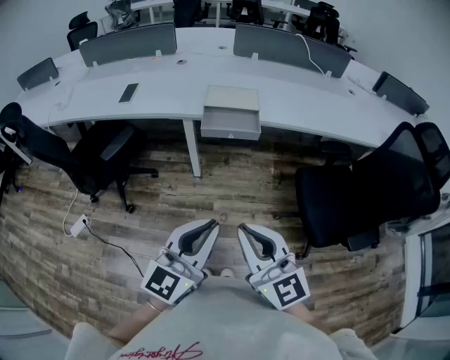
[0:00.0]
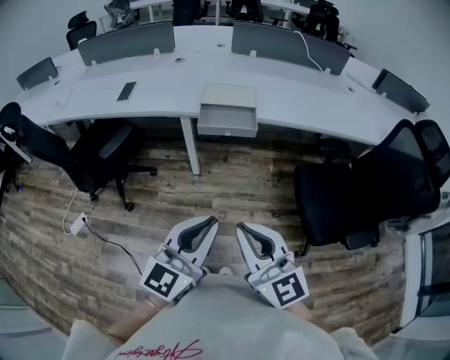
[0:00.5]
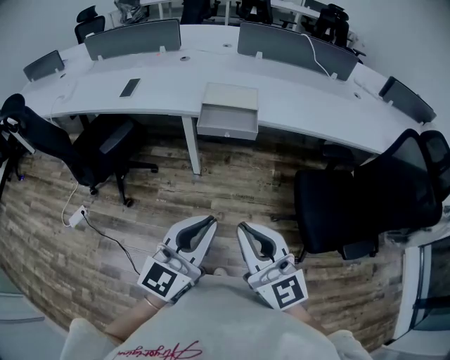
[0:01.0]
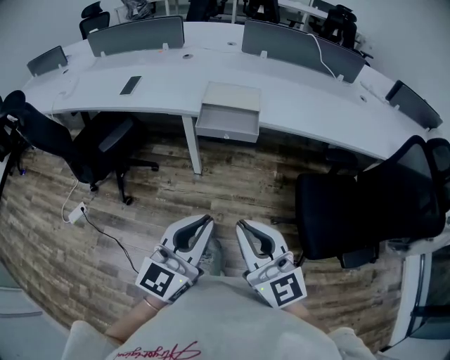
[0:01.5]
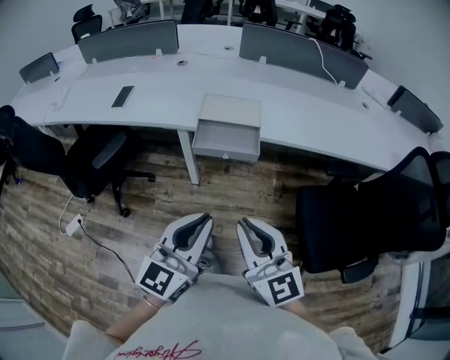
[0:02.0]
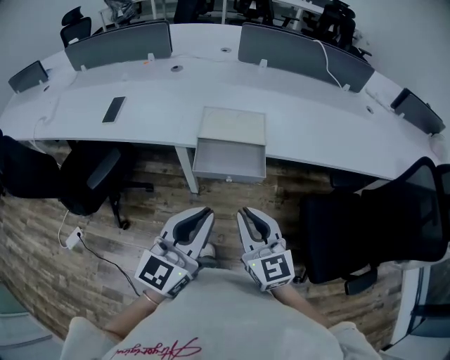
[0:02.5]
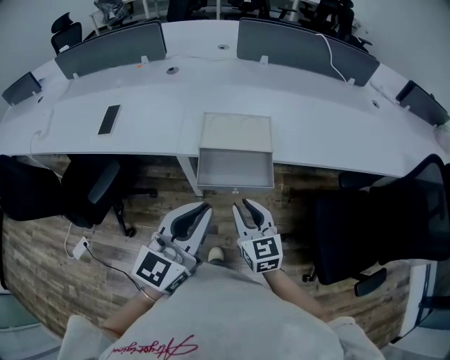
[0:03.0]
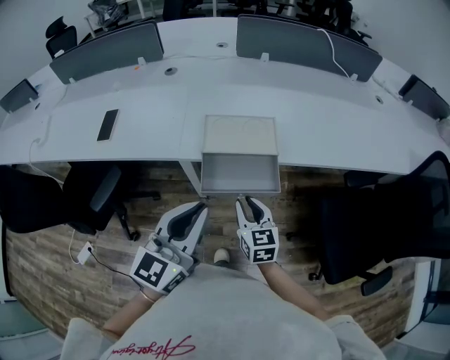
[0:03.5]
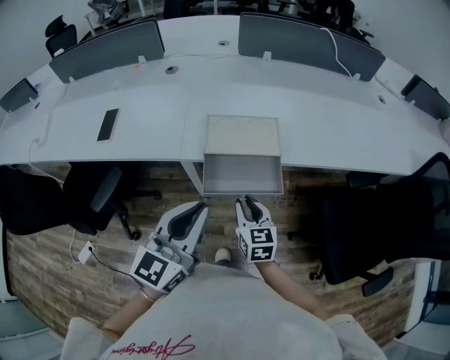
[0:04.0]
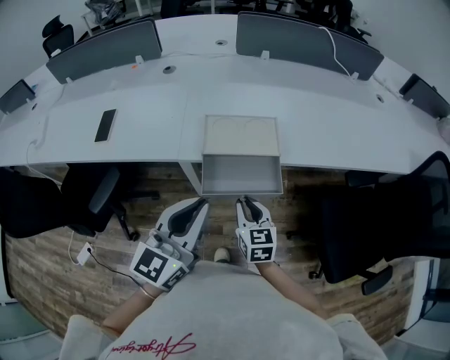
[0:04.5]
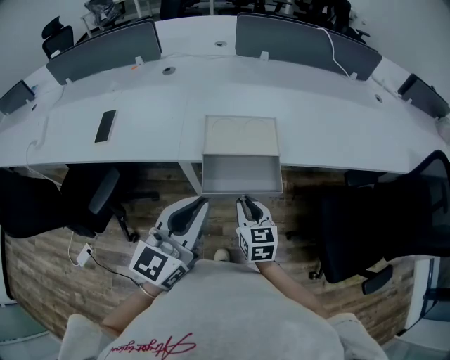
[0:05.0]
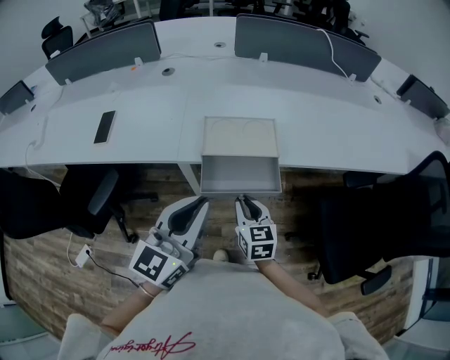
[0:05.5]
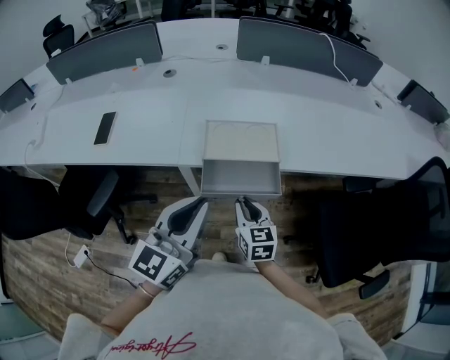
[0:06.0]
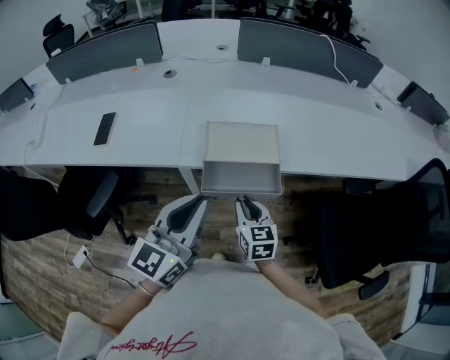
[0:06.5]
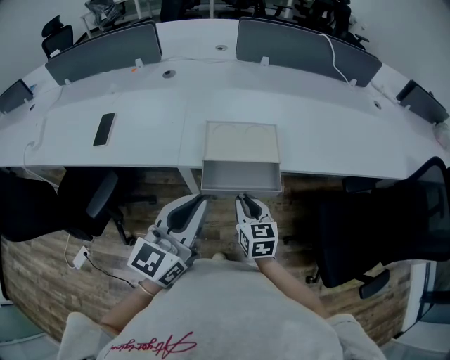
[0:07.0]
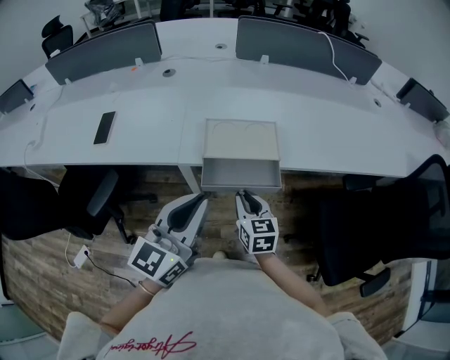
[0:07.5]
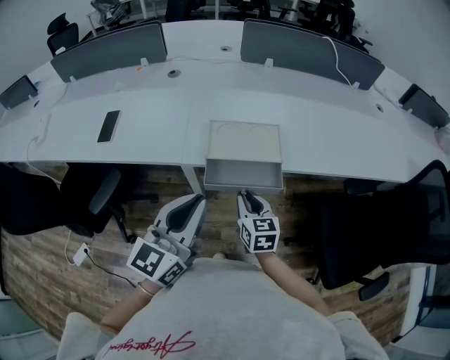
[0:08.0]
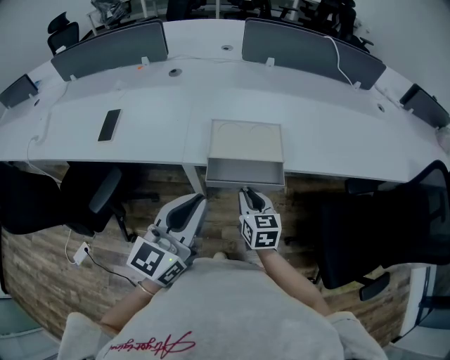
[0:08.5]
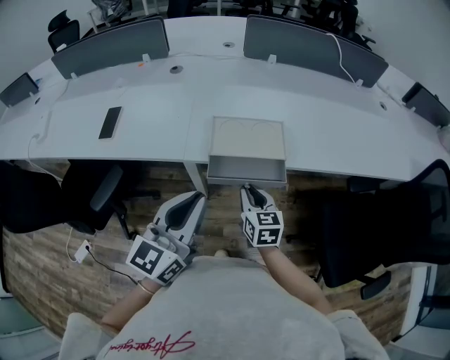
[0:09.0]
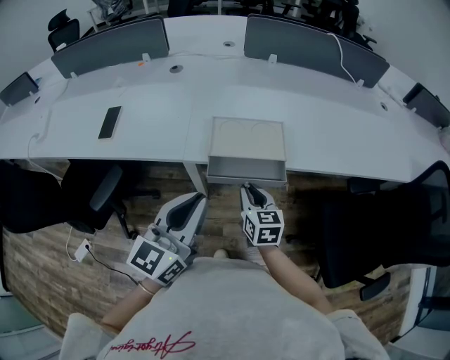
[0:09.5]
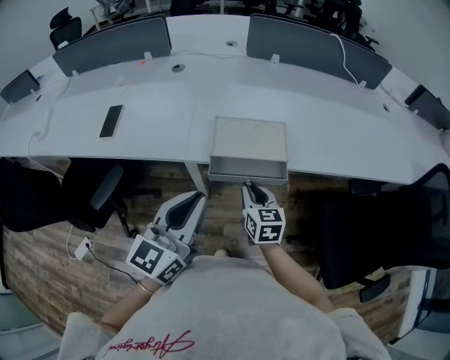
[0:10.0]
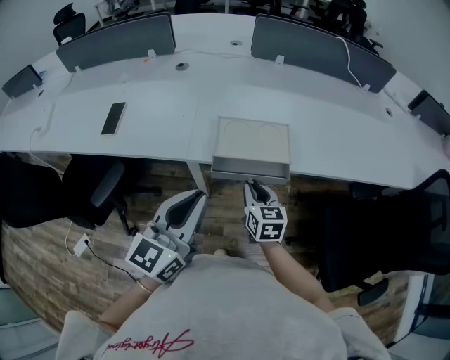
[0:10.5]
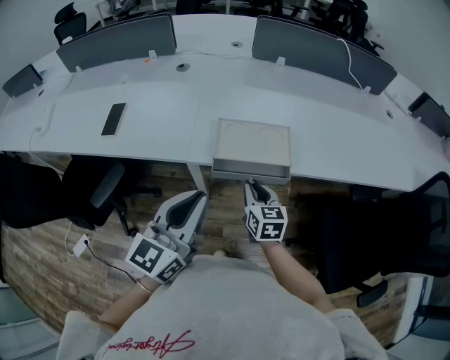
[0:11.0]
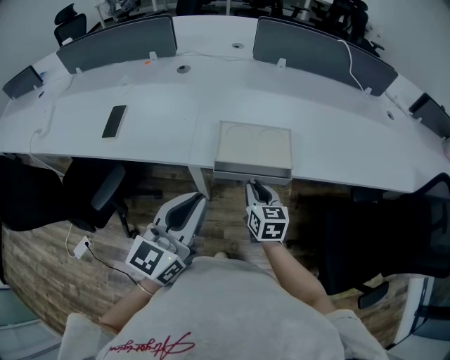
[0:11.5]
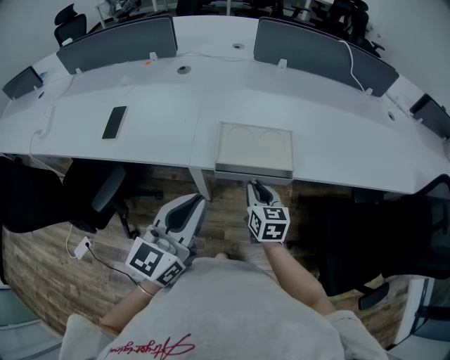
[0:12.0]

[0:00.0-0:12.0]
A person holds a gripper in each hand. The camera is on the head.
0:00.0 to 0:02.0: The two grippers go approximately 10 cm forward.
0:02.0 to 0:04.0: The right gripper shifts some 30 cm forward and downward, and rotates about 40 degrees, while the left gripper goes some 20 cm forward and to the left.
0:04.0 to 0:10.0: The grippers make only small movements.
0:10.0 to 0:12.0: The grippers move only a little.

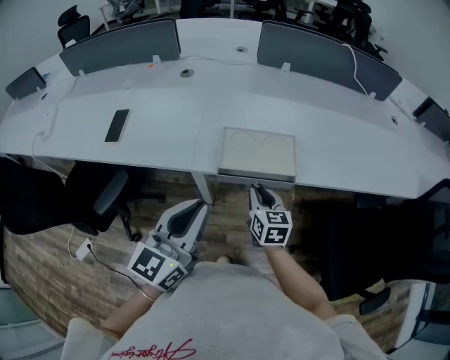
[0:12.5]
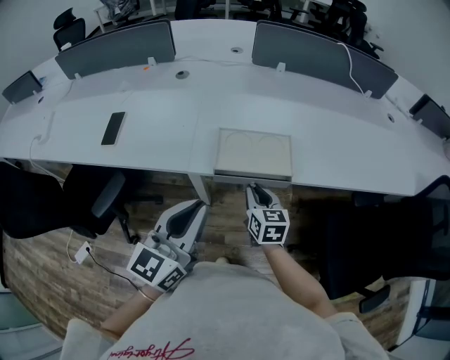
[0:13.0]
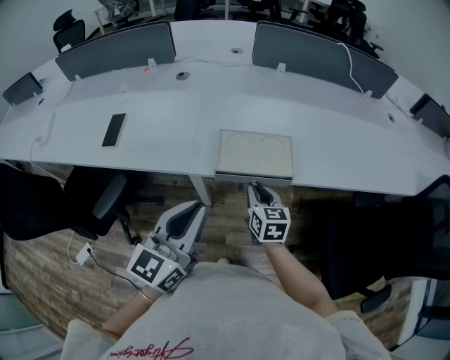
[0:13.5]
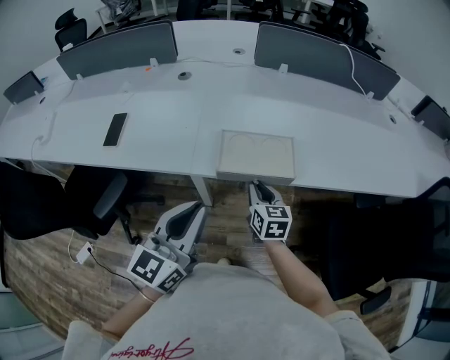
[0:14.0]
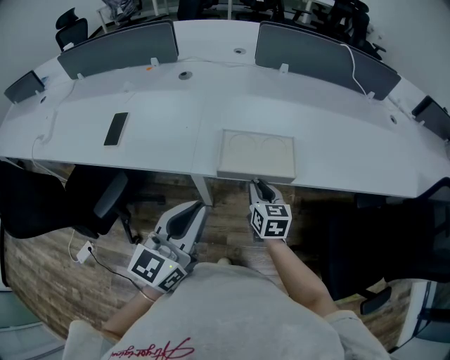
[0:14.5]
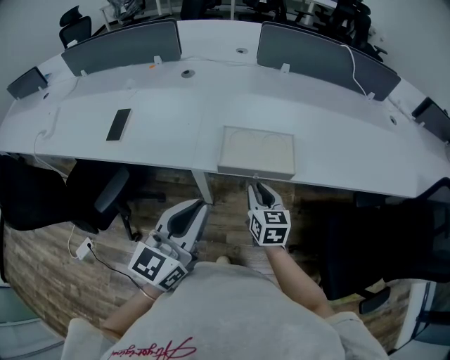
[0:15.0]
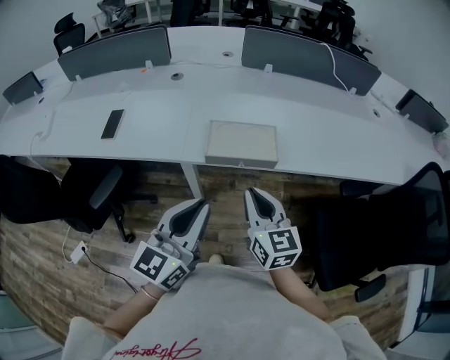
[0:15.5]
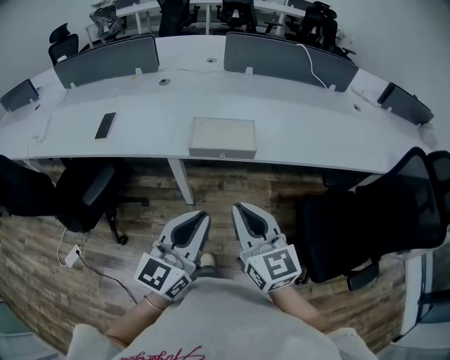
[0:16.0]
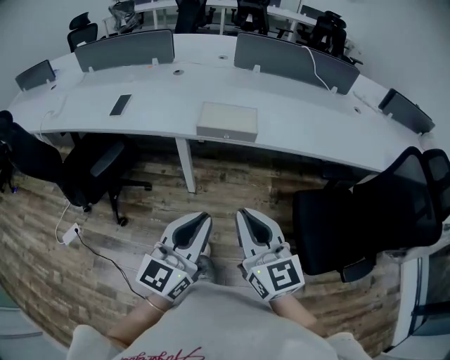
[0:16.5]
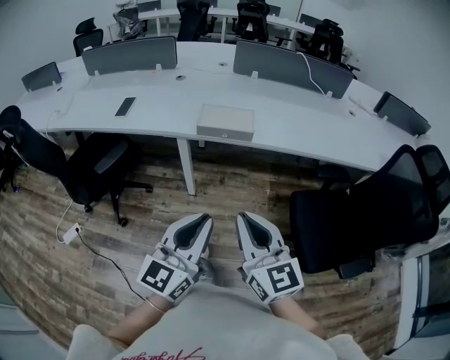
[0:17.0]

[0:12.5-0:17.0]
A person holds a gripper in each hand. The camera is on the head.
0:12.5 to 0:14.5: The grippers move only a little.
0:14.5 to 0:17.0: The right gripper travels backward and upward by about 40 cm, and swivels some 30 degrees. The left gripper goes roughly 30 cm backward and to the right.

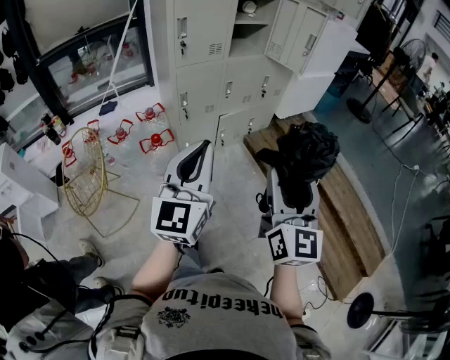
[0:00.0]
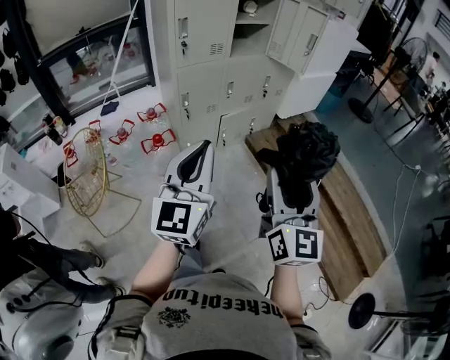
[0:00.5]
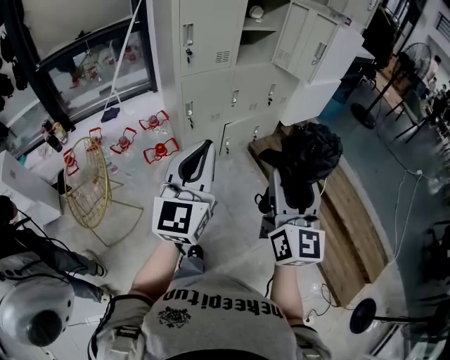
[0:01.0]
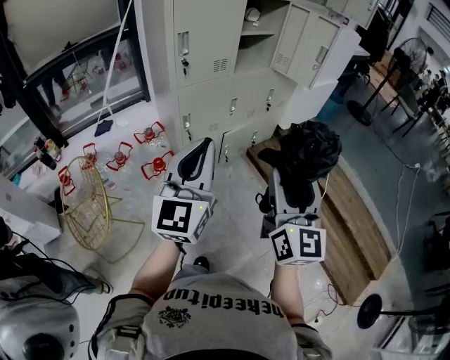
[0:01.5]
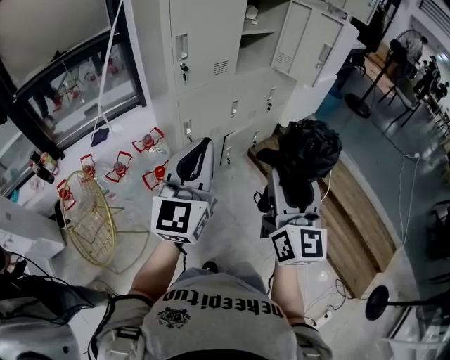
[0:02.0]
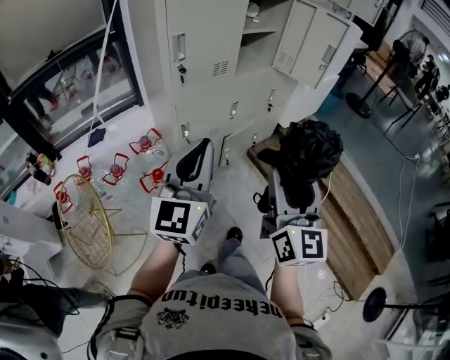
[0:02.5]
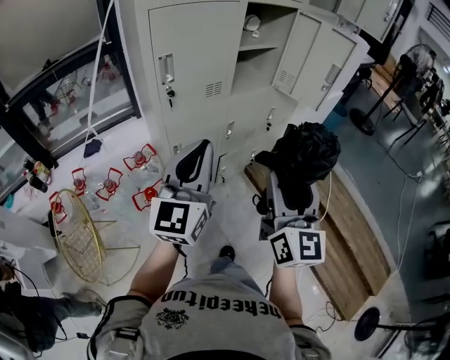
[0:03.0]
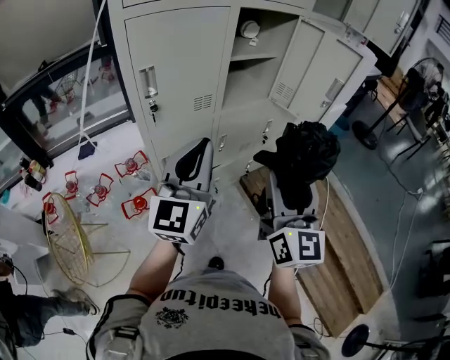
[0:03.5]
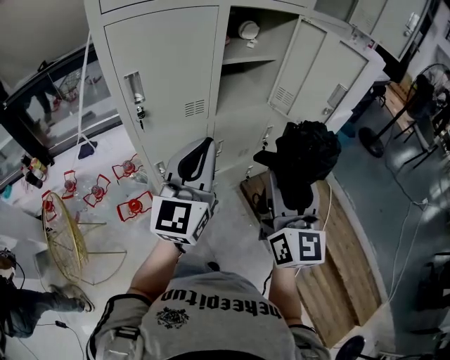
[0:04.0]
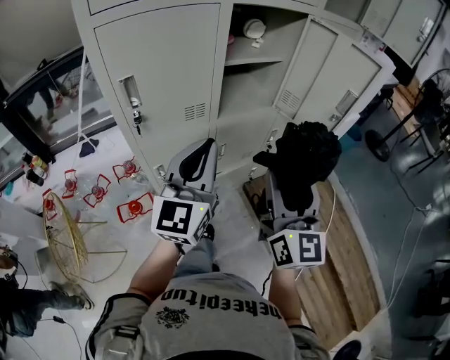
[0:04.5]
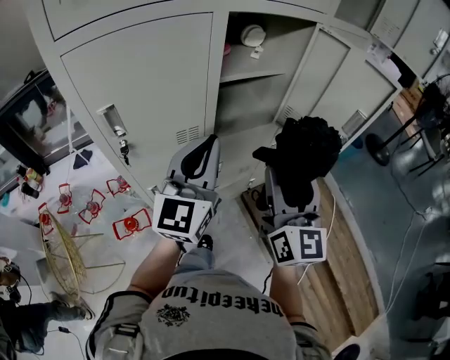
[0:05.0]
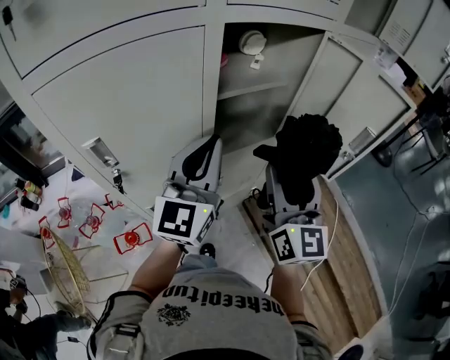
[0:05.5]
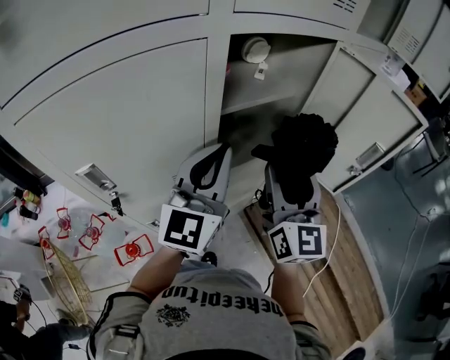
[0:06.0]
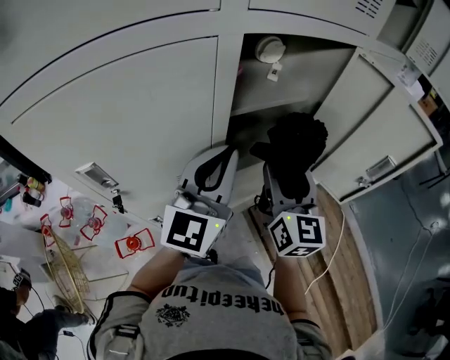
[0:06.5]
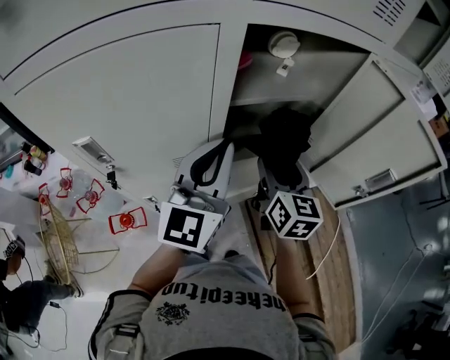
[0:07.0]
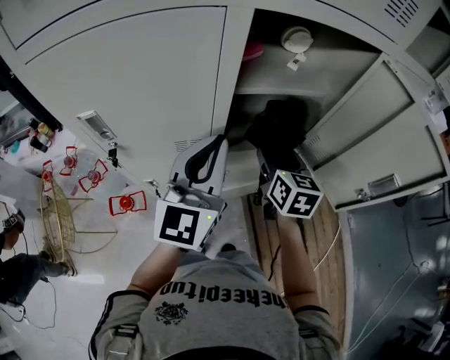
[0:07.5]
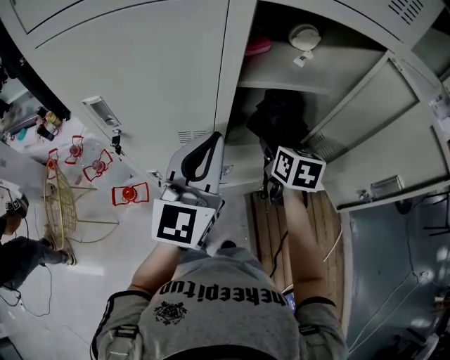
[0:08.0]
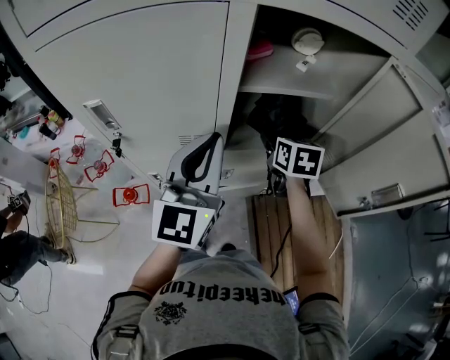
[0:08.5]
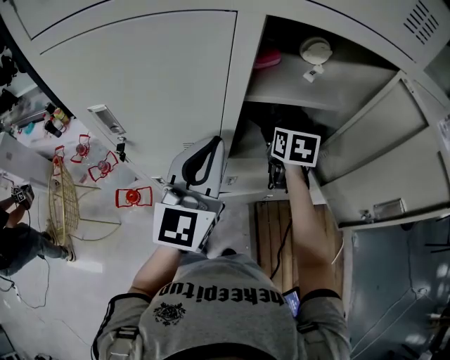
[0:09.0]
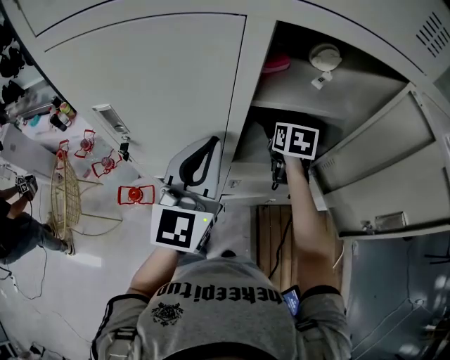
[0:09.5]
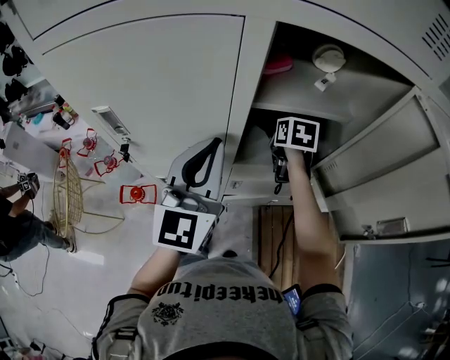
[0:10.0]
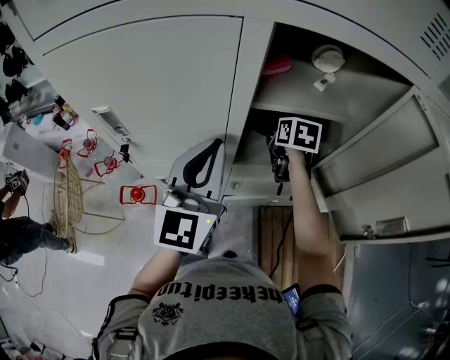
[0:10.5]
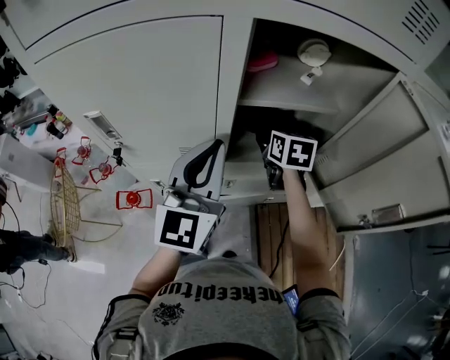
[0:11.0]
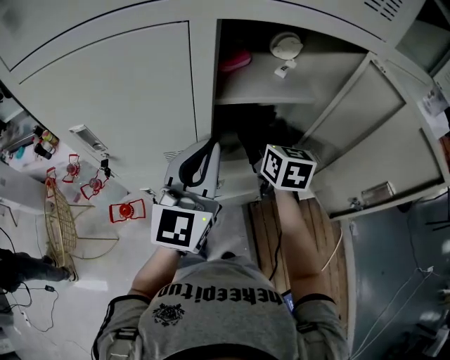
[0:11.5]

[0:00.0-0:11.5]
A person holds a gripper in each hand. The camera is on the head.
0:00.0 to 0:02.0: Both grippers move forward and to the left, some 20 cm.
0:02.0 to 0:04.0: The right gripper shifts some 30 cm forward, while the left gripper heads forward and to the right, covering some 30 cm.
0:04.0 to 0:06.0: The grippers both shift forward by roughly 25 cm.
0:06.0 to 0:07.5: The right gripper moves downward and forward, about 15 cm, and points its fingers approximately 30 degrees further downward.
0:07.5 to 0:09.5: The right gripper moves forward, some 15 cm.
0:09.5 to 0:11.5: The right gripper moves backward and upward, about 10 cm, and closes its fingers.
